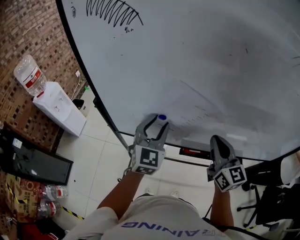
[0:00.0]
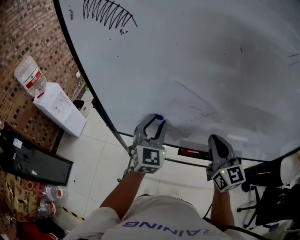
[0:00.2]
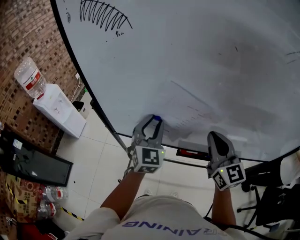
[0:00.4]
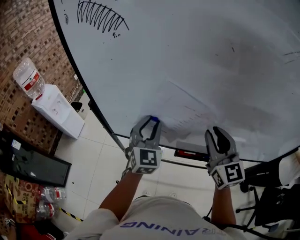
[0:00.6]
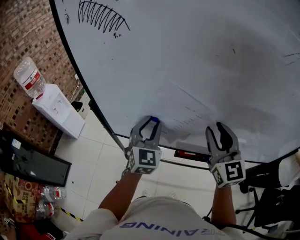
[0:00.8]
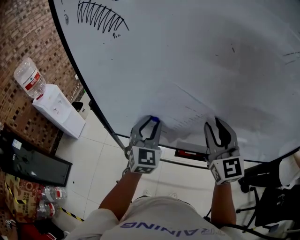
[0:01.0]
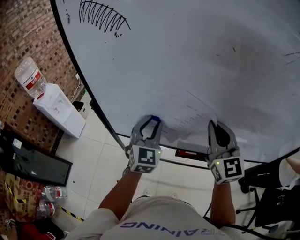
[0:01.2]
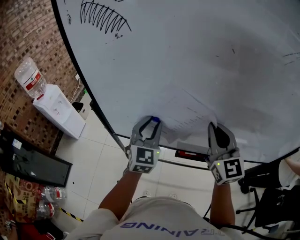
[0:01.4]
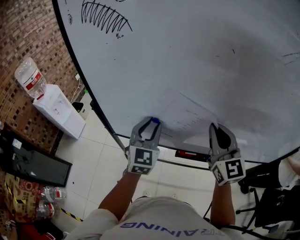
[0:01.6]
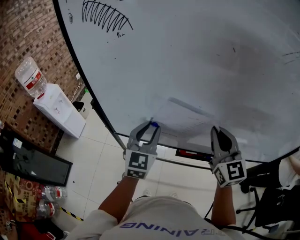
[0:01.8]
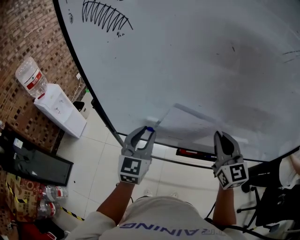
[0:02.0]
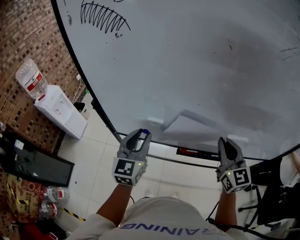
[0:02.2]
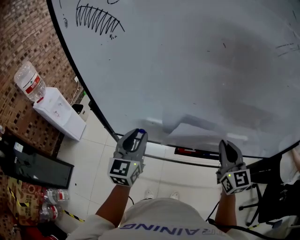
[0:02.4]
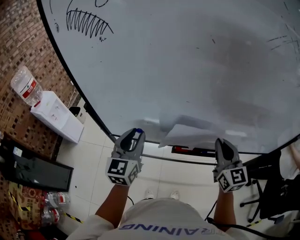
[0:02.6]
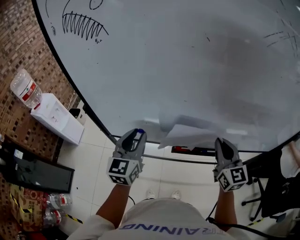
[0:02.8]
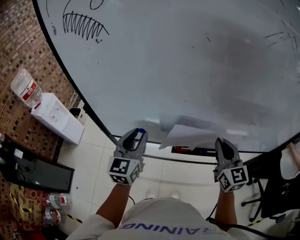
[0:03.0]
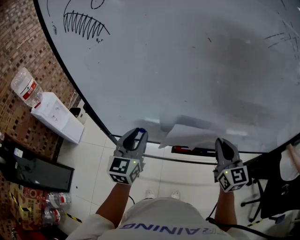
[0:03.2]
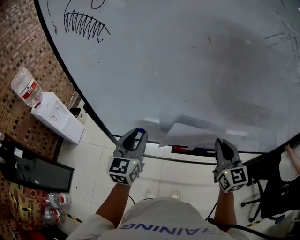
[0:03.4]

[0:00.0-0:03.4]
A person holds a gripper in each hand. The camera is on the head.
0.0 to 1.6 s: The right gripper moves upward, some 5 cm, and opens, then closes once more.
1.6 to 3.4 s: The left gripper goes about 5 cm backward; the right gripper travels to the right and downward by some 10 cm.

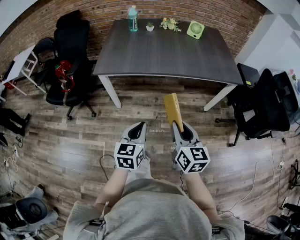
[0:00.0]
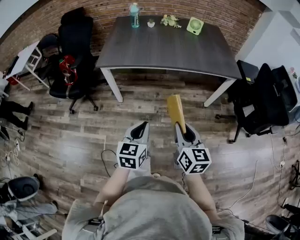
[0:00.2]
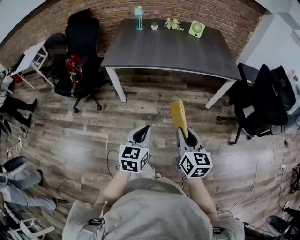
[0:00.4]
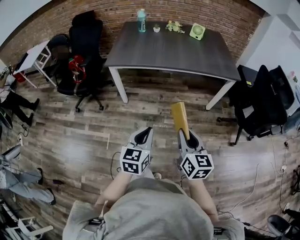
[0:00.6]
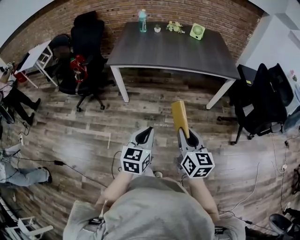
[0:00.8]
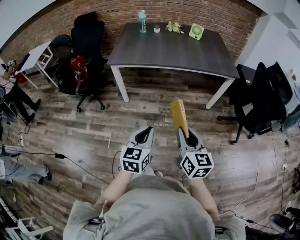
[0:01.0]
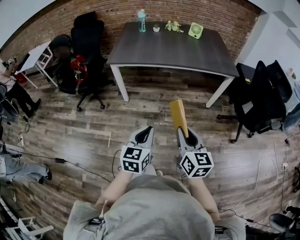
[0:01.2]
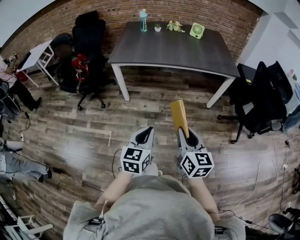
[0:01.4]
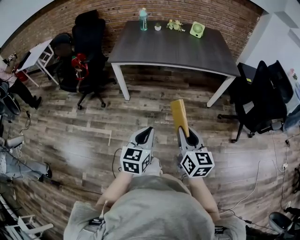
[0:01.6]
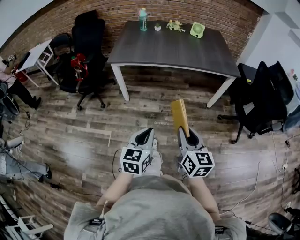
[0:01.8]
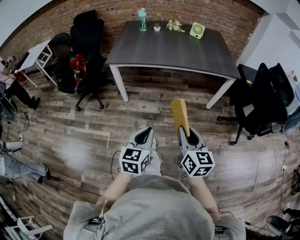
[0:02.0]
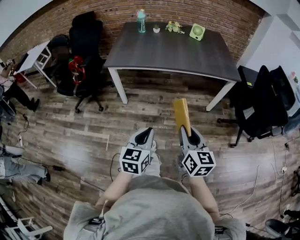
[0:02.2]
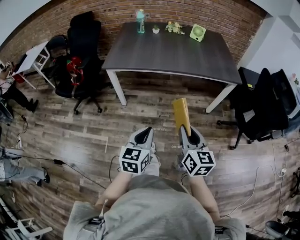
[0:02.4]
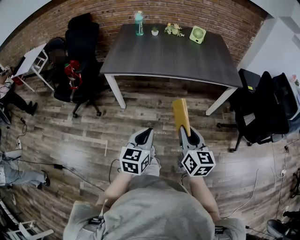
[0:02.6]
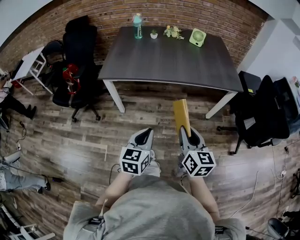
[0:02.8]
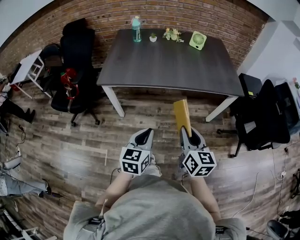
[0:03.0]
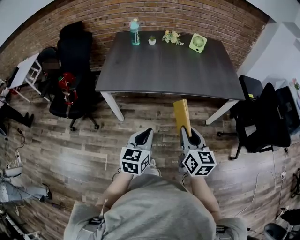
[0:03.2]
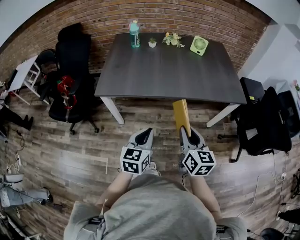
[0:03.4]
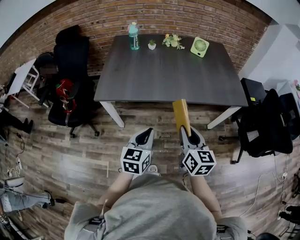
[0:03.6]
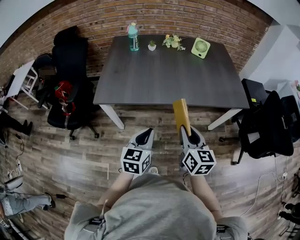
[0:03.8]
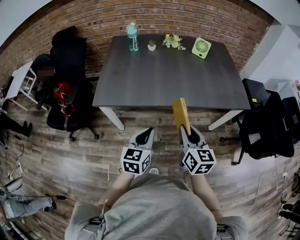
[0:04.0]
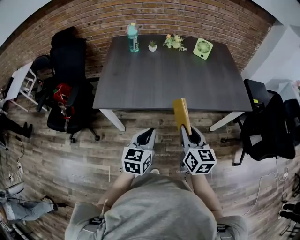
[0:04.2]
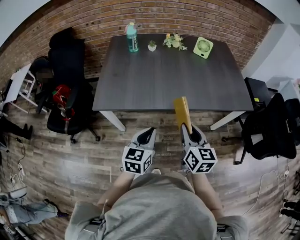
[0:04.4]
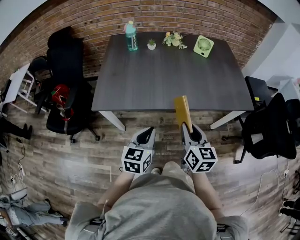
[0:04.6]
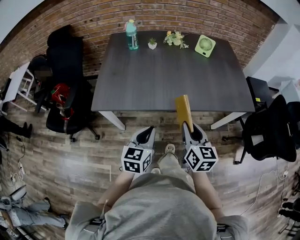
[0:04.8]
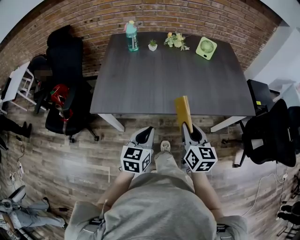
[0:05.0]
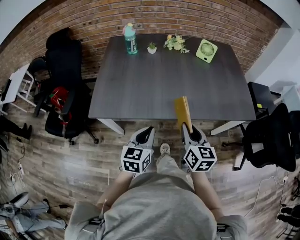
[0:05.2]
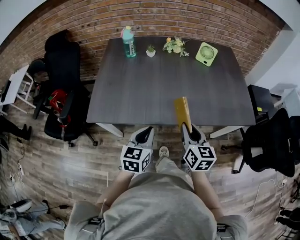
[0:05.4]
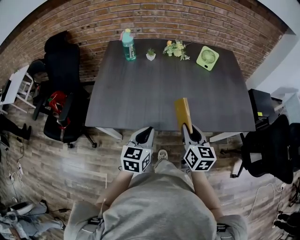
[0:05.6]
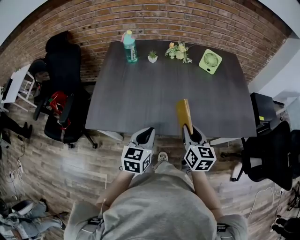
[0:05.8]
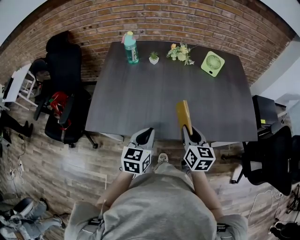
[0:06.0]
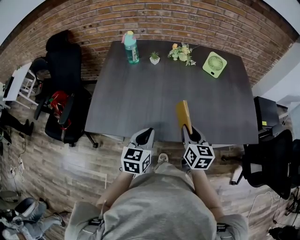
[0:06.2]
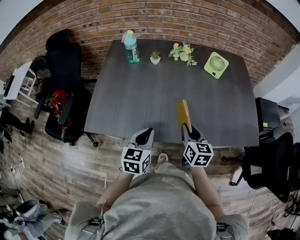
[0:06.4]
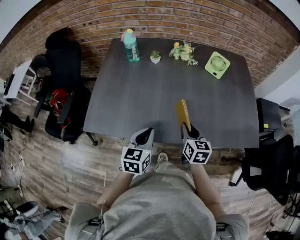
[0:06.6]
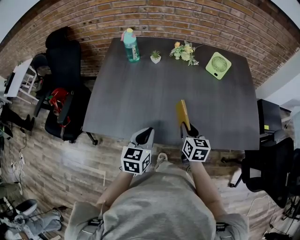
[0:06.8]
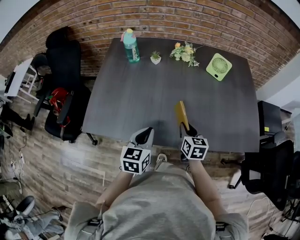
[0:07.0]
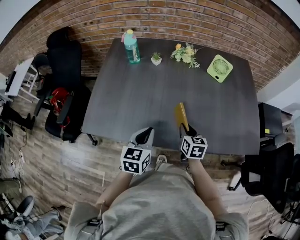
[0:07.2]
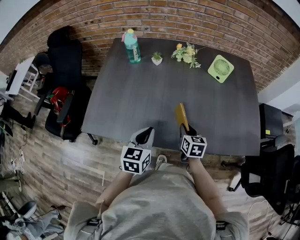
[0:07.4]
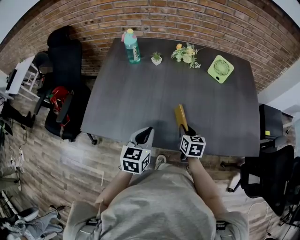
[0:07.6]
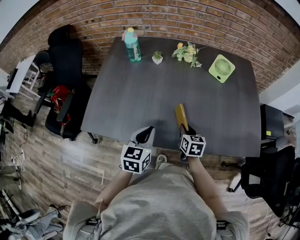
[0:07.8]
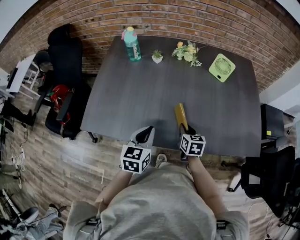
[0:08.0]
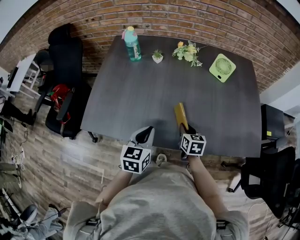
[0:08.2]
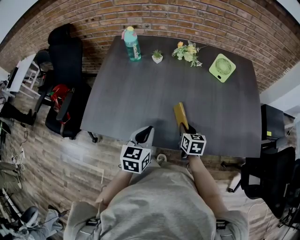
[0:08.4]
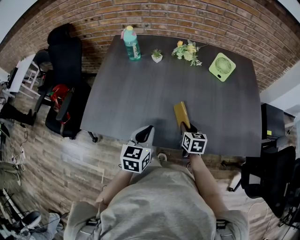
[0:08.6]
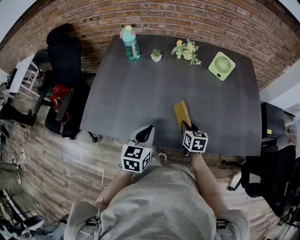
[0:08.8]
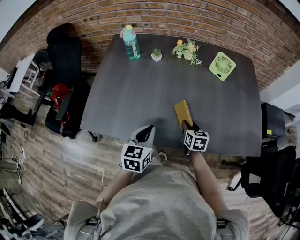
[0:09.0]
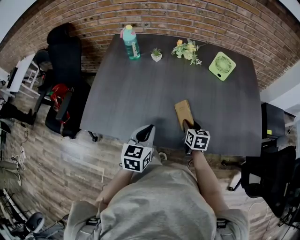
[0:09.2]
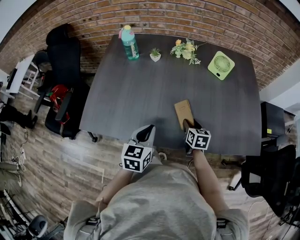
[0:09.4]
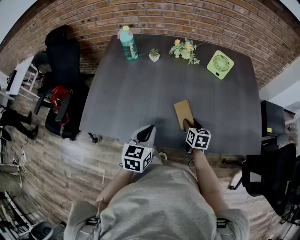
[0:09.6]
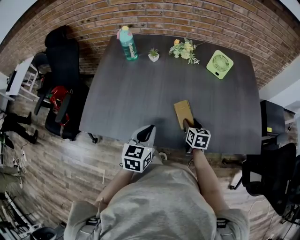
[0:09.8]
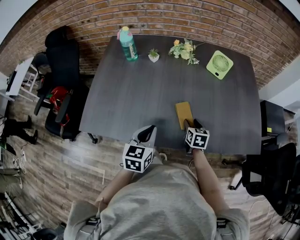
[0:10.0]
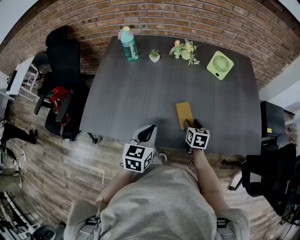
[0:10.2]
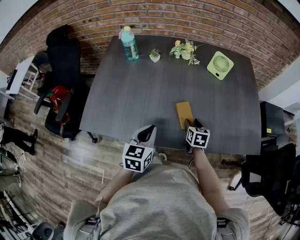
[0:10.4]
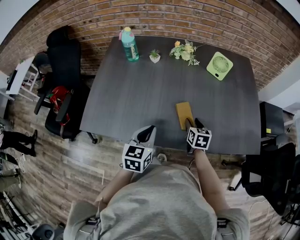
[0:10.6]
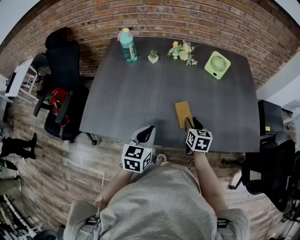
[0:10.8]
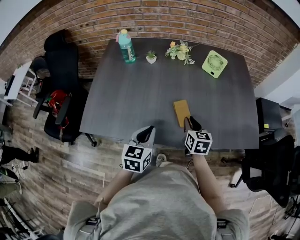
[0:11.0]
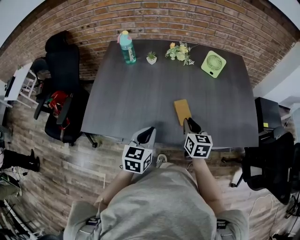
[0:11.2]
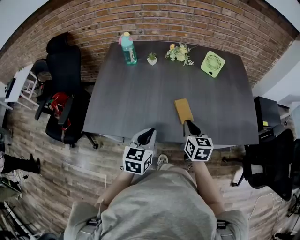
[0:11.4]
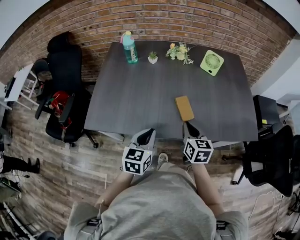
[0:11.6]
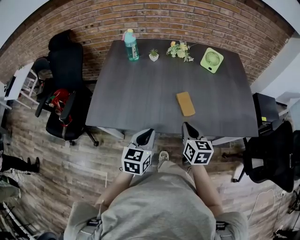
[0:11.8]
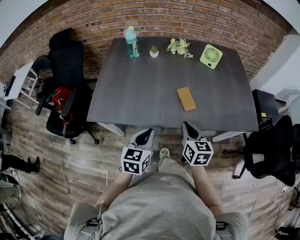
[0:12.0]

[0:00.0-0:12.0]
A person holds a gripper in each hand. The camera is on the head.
0.0 to 1.6 s: The grippers both shift backward by approximately 20 cm.
1.6 to 3.0 s: The two grippers go approximately 25 cm forward.
3.0 to 4.4 s: The grippers both shift forward by approximately 20 cm.
4.4 to 6.0 s: The grippers both shift forward by about 20 cm.
6.0 to 7.6 s: The left gripper travels forward by about 5 cm; the right gripper goes some 15 cm downward and forward.
7.6 to 9.0 s: The grippers move only a little.
9.0 to 10.4 s: The grippers move only a little.
10.4 to 12.0 s: The left gripper moves backward, about 15 cm. Meanwhile the right gripper shifts about 25 cm backward and upward, and closes its fingers.

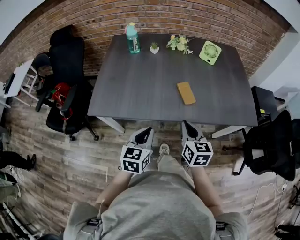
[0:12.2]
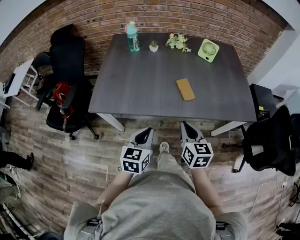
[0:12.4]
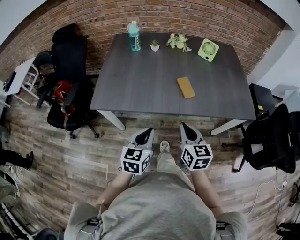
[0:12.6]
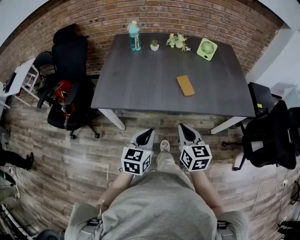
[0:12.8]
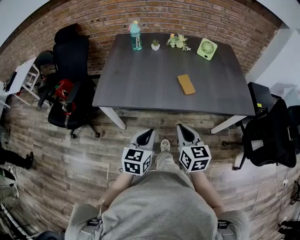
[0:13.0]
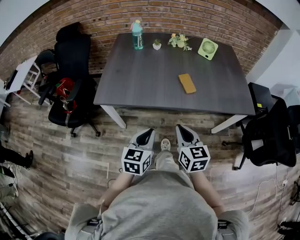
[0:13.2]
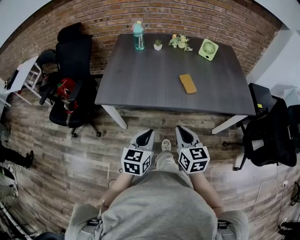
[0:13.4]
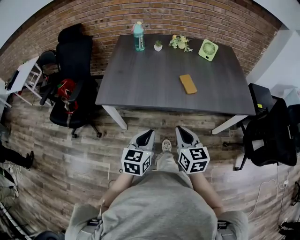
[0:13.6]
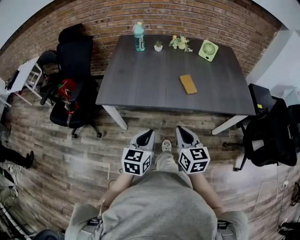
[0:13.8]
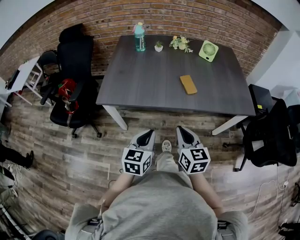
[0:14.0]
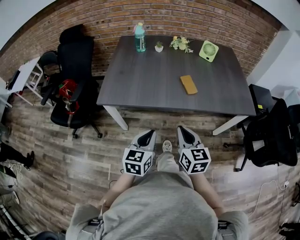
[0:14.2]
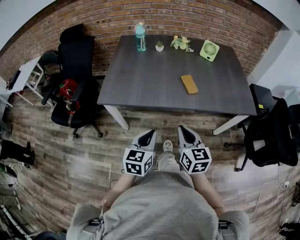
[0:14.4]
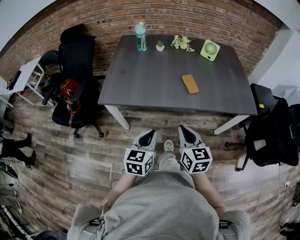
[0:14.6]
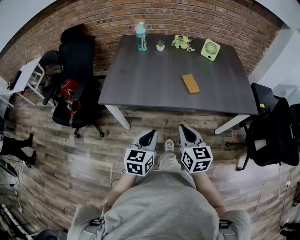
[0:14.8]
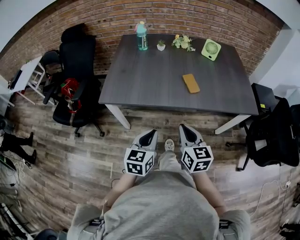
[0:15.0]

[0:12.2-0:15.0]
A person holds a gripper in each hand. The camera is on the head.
12.2 to 13.6 s: Both grippers move backward, about 15 cm.
13.6 to 15.0 s: Both grippers stay put.

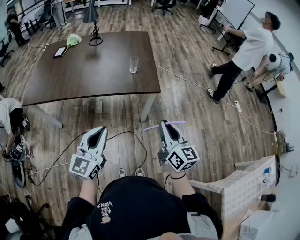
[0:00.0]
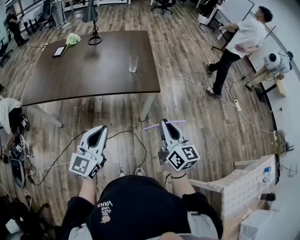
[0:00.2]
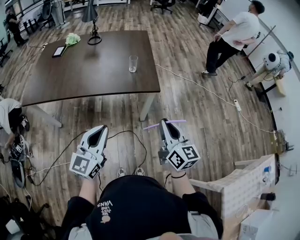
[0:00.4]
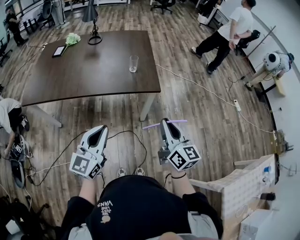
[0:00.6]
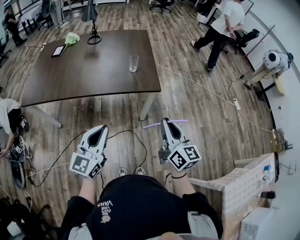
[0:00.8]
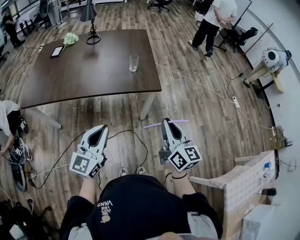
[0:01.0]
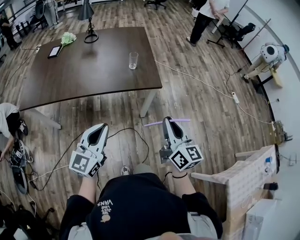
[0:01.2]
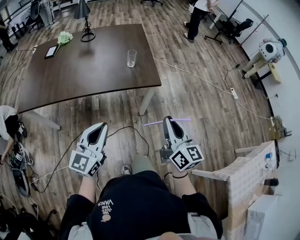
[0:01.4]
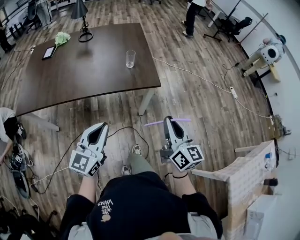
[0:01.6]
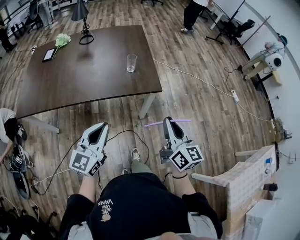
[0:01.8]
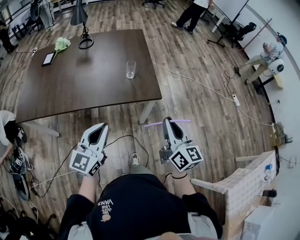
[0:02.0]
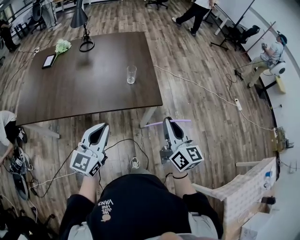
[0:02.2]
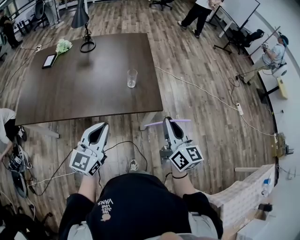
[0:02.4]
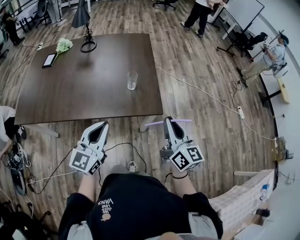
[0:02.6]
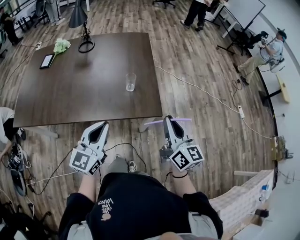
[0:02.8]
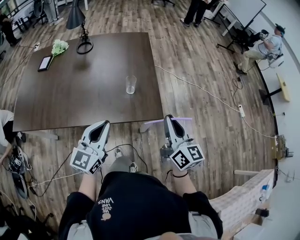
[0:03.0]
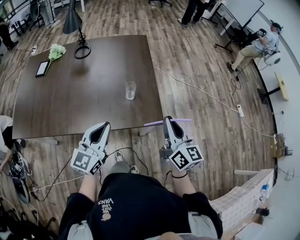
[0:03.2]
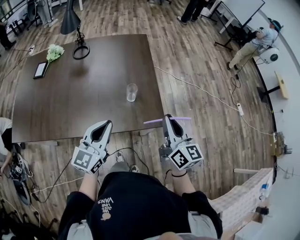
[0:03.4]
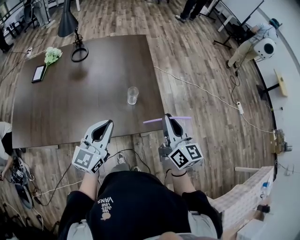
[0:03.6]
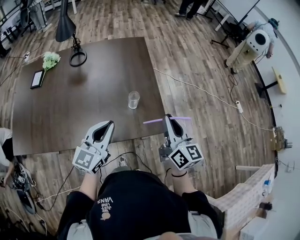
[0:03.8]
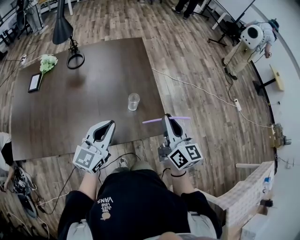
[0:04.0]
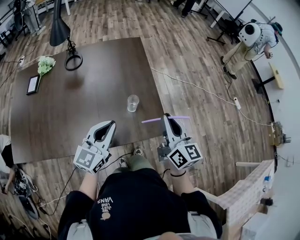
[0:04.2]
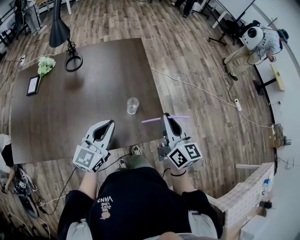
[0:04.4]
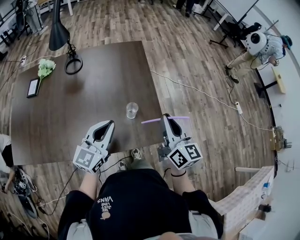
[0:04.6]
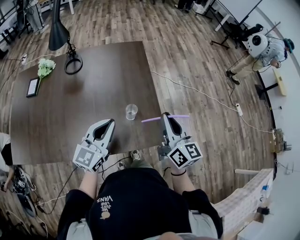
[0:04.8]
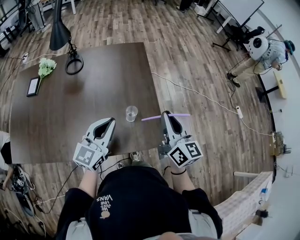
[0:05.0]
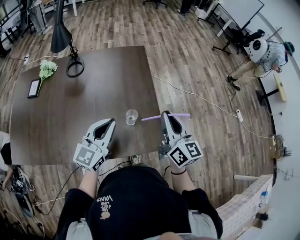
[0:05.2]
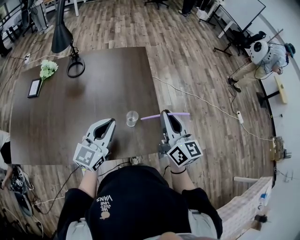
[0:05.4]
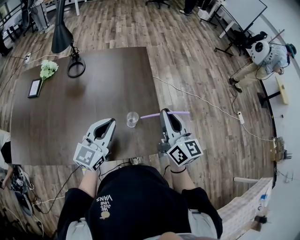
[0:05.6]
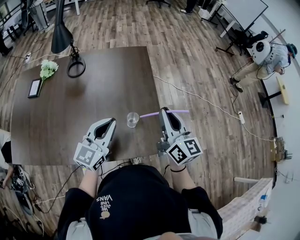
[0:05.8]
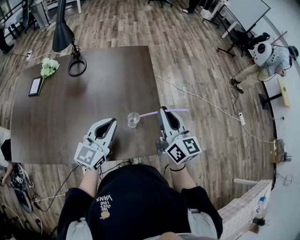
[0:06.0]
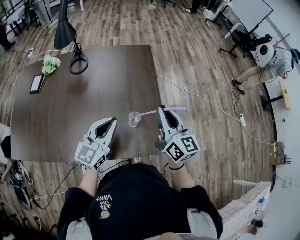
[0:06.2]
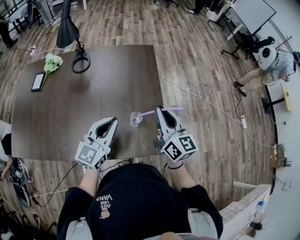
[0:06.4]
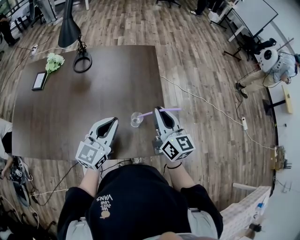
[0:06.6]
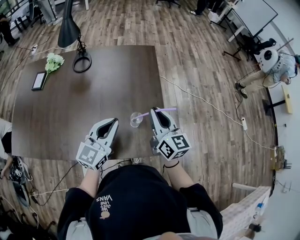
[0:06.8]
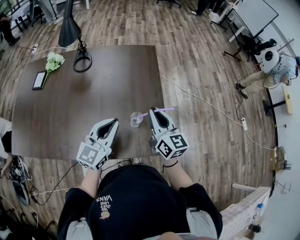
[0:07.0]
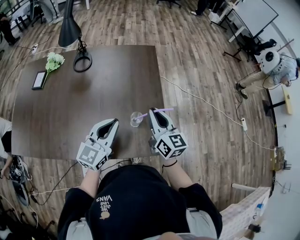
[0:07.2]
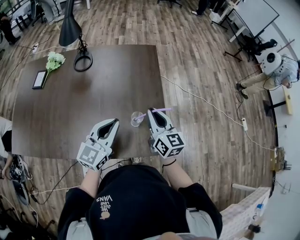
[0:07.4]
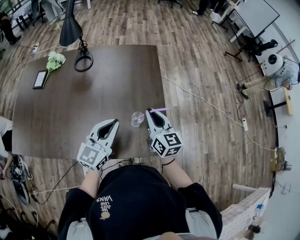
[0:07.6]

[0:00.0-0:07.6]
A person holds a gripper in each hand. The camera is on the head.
0.0 to 1.6 s: The left gripper ends up about 5 cm from where it was.
1.6 to 3.0 s: Both grippers travel together forward, some 25 cm.
3.0 to 4.6 s: The two grippers go about 15 cm forward.
4.6 to 6.0 s: Both grippers travel together forward, about 5 cm.
6.0 to 7.6 s: The right gripper goes approximately 10 cm downward and to the left.
